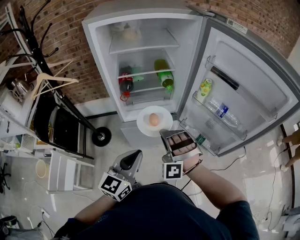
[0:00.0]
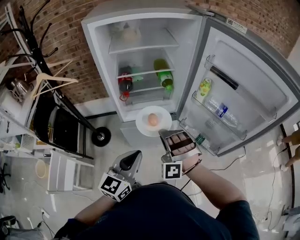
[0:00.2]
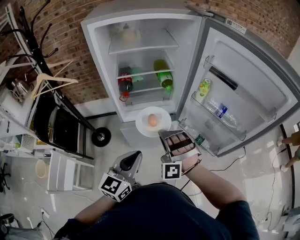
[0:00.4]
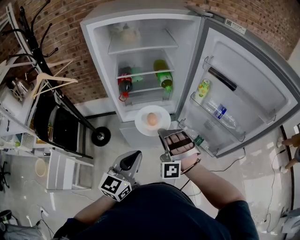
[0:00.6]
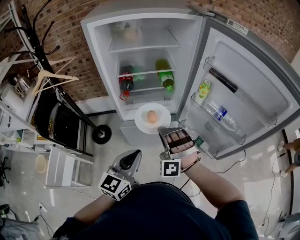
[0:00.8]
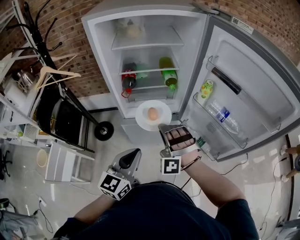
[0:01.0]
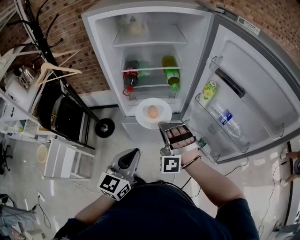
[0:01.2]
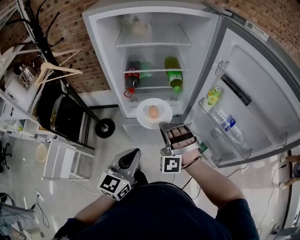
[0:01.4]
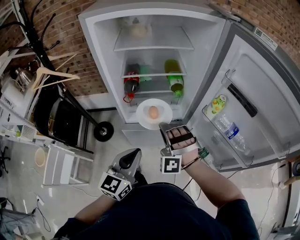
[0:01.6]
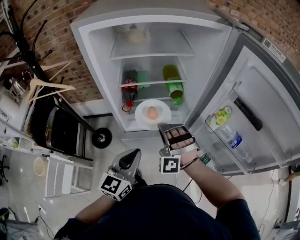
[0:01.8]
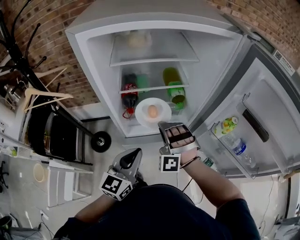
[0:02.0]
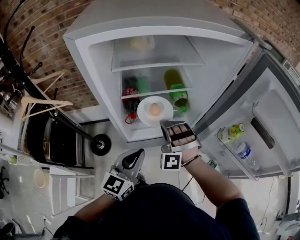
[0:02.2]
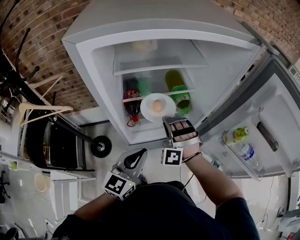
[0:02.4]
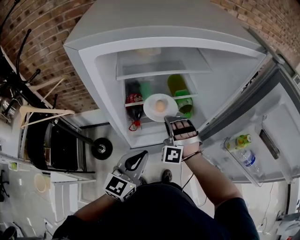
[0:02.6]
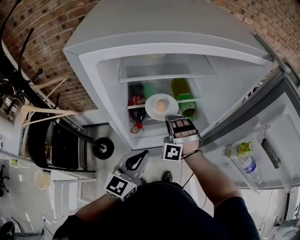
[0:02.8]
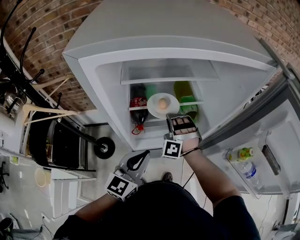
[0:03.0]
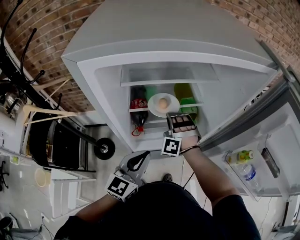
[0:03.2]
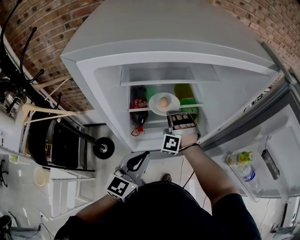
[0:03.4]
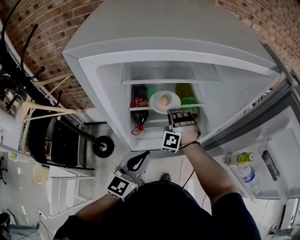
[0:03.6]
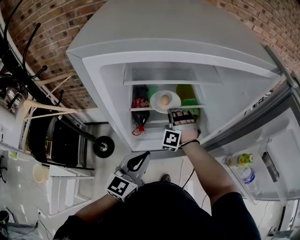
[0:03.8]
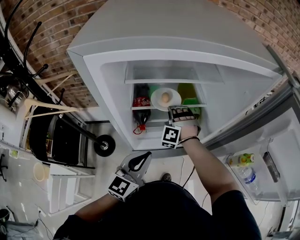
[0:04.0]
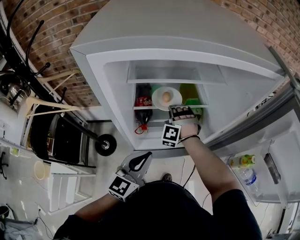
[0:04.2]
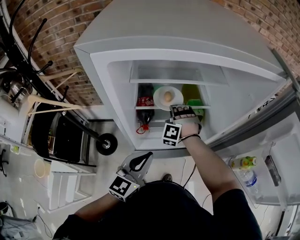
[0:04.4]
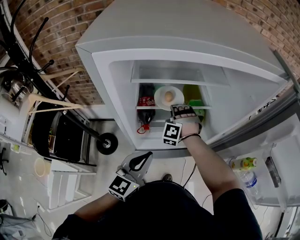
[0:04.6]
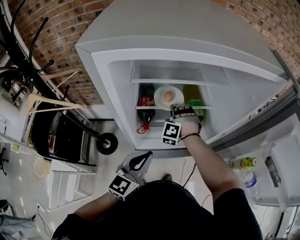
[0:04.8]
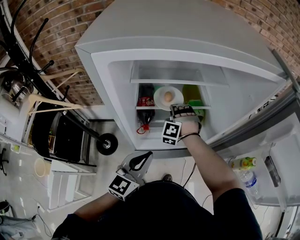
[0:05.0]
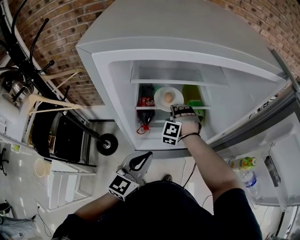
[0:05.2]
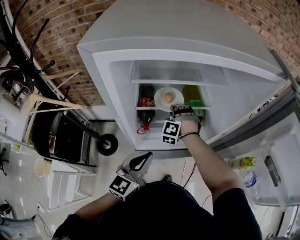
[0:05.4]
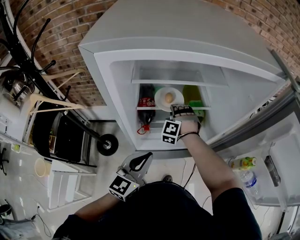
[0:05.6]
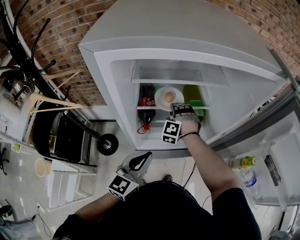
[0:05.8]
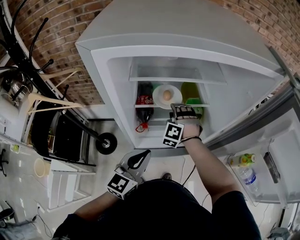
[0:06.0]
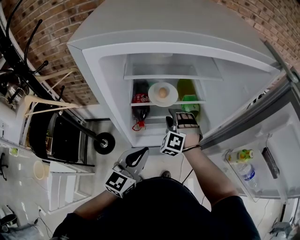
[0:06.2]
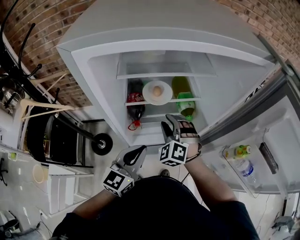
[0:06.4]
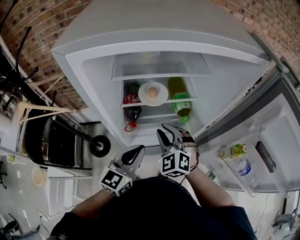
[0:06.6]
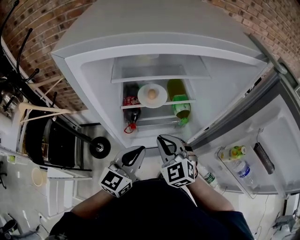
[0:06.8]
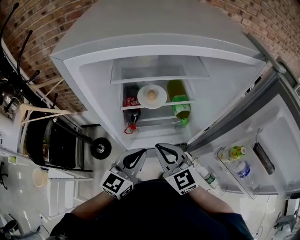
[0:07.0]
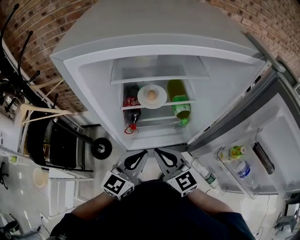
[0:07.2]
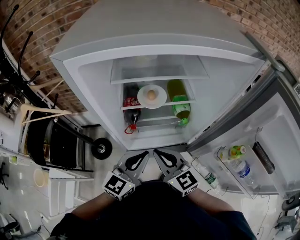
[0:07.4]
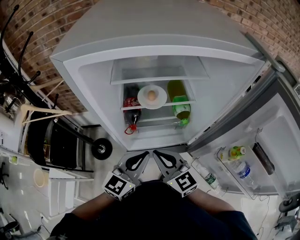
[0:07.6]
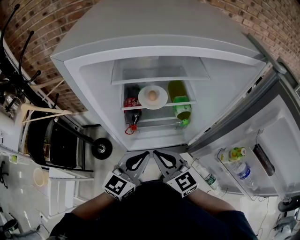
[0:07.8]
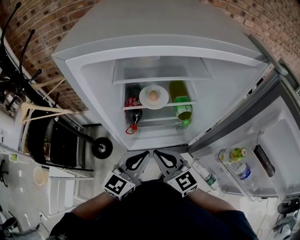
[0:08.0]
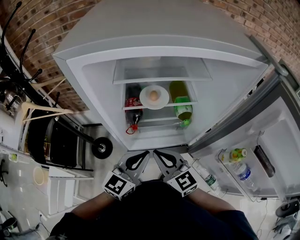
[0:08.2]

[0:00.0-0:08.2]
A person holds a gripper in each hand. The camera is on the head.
0.0 to 1.6 s: The left gripper ends up some 10 cm from where it was.
1.6 to 3.2 s: The left gripper changes place by about 20 cm.

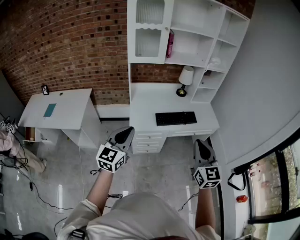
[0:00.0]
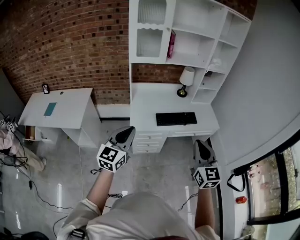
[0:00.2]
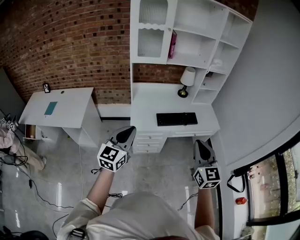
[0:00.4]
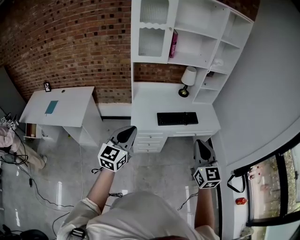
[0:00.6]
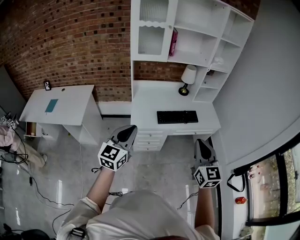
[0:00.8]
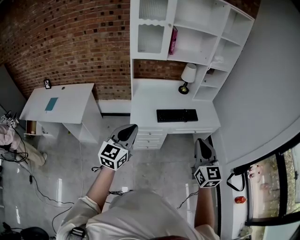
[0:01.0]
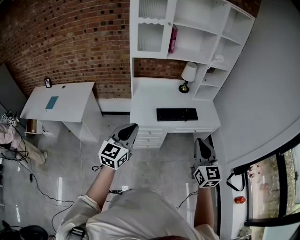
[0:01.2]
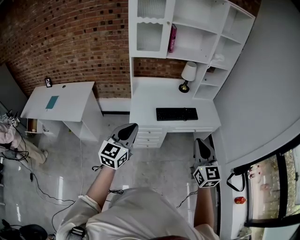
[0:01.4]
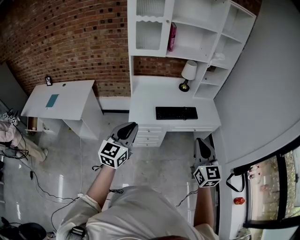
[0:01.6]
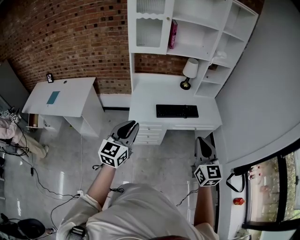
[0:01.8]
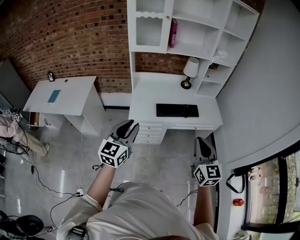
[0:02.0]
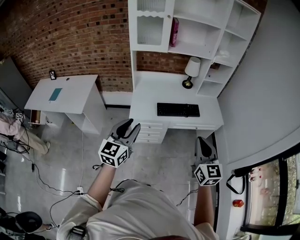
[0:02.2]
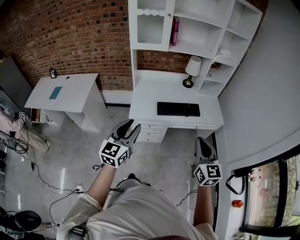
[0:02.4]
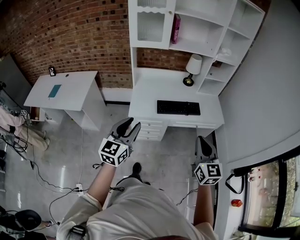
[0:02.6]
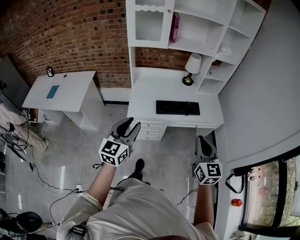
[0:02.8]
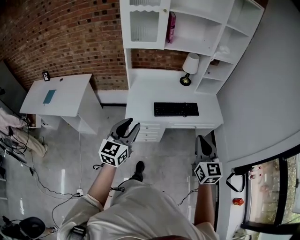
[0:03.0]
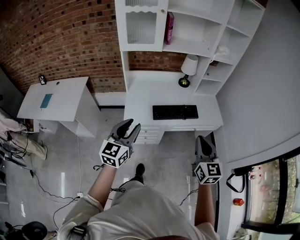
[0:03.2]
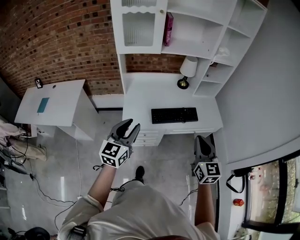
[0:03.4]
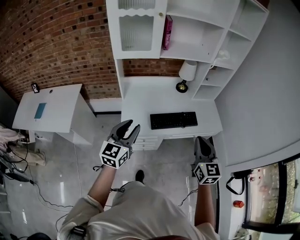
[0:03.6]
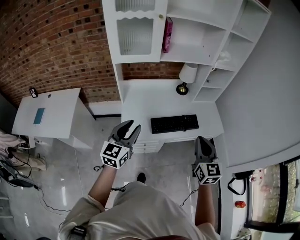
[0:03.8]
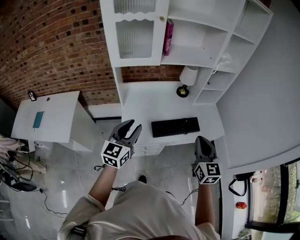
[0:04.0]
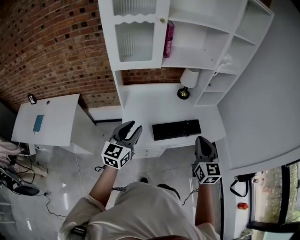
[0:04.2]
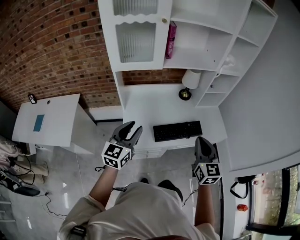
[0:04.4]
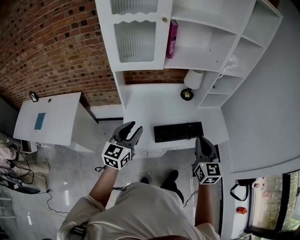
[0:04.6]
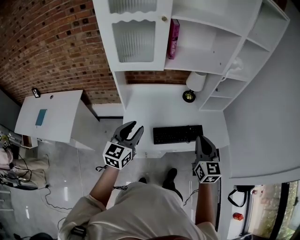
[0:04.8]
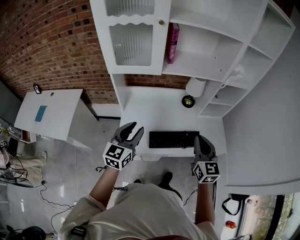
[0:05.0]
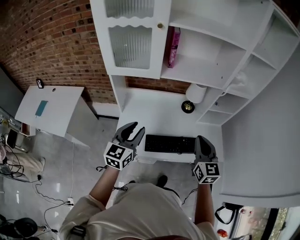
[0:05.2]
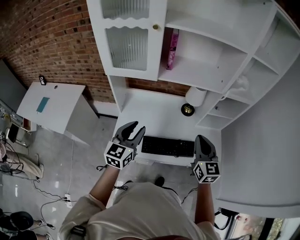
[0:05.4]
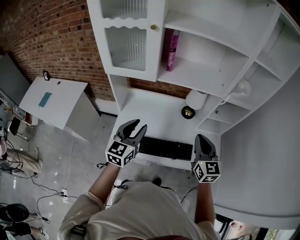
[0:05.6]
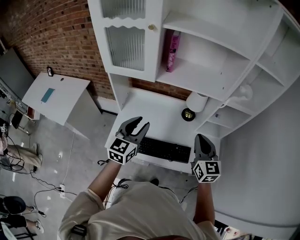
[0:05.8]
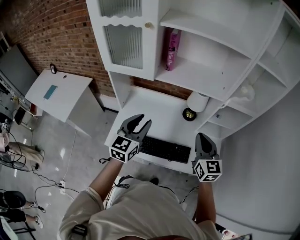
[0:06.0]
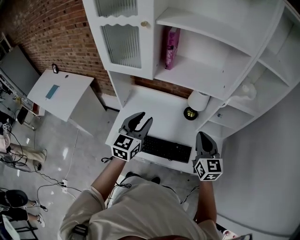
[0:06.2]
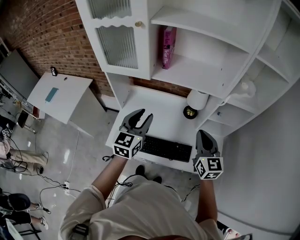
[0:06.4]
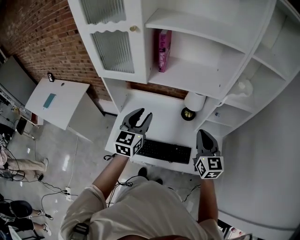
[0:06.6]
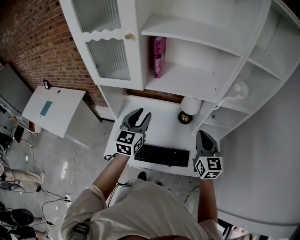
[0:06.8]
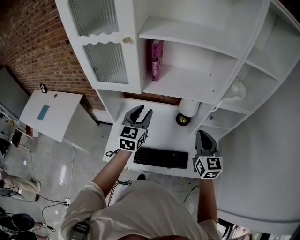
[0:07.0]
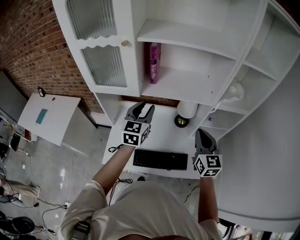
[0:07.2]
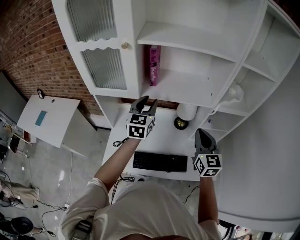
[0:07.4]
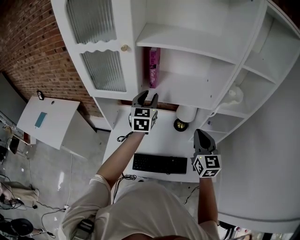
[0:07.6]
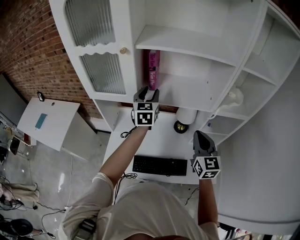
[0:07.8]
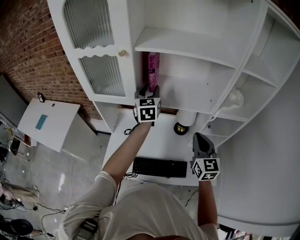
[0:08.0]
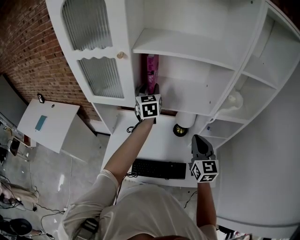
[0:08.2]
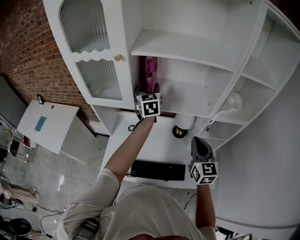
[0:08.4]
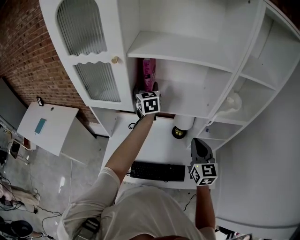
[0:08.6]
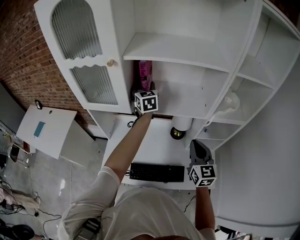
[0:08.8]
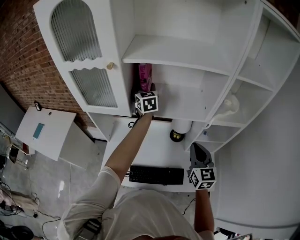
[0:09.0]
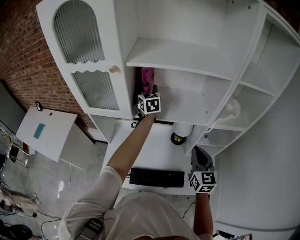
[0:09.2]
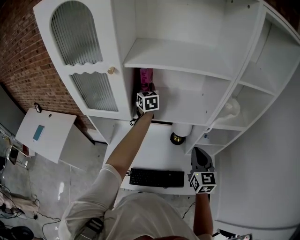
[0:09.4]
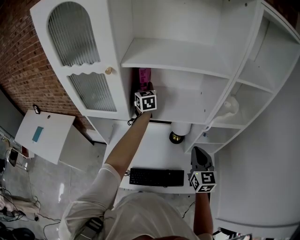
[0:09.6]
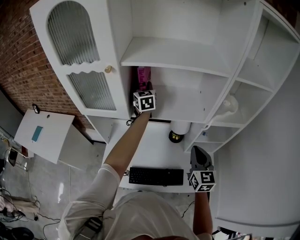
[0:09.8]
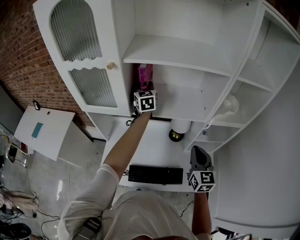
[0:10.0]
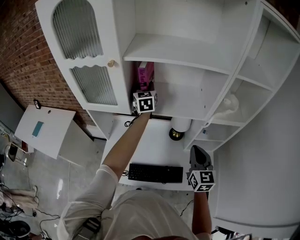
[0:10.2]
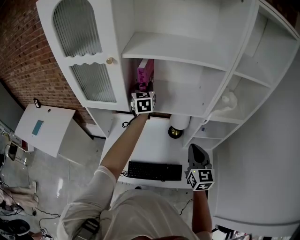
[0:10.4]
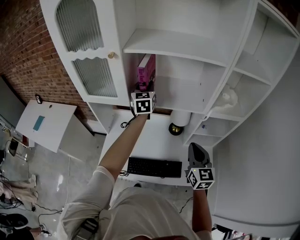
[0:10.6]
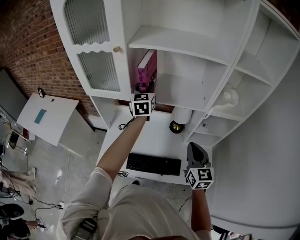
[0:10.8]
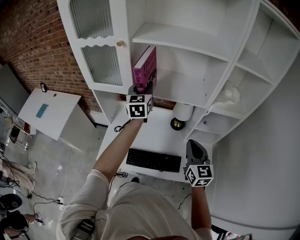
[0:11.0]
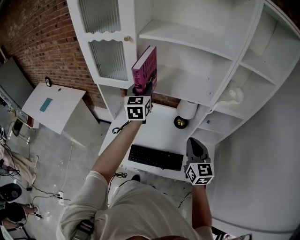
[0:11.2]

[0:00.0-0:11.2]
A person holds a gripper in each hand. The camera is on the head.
0.0 to 1.6 s: There are only small adjustments of the grippers.
1.6 to 3.2 s: The grippers both shift forward by approximately 10 cm. The left gripper opens.
3.2 to 4.8 s: The two grippers go some 25 cm forward.
4.8 to 6.4 s: The right gripper shifts some 25 cm forward and to the right. Meanwhile the left gripper goes about 20 cm to the right and forward.
6.4 to 8.0 s: The left gripper is displaced forward by some 25 cm. The right gripper moves forward, roughly 5 cm.
8.0 to 9.6 s: The left gripper heads forward, covering about 15 cm.
9.6 to 11.2 s: The left gripper travels backward by some 20 cm; the right gripper shifts approximately 10 cm backward.

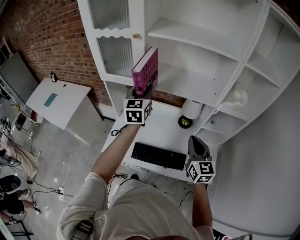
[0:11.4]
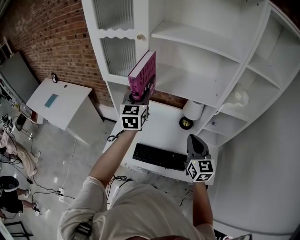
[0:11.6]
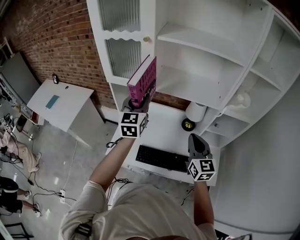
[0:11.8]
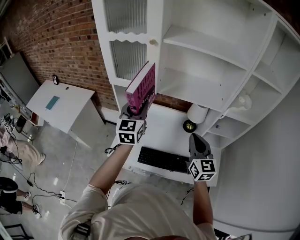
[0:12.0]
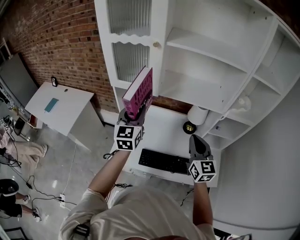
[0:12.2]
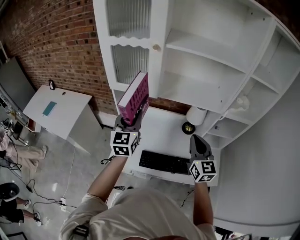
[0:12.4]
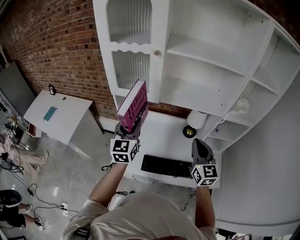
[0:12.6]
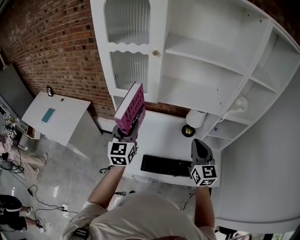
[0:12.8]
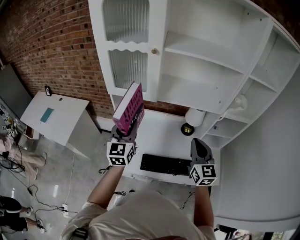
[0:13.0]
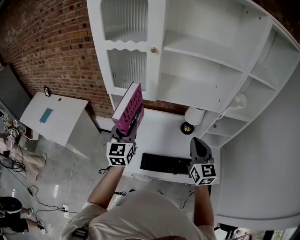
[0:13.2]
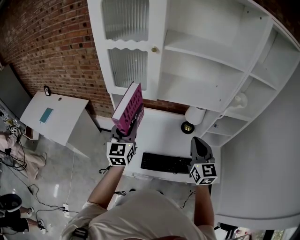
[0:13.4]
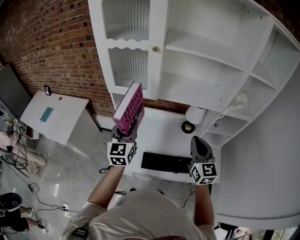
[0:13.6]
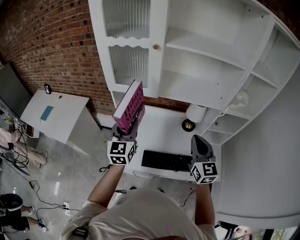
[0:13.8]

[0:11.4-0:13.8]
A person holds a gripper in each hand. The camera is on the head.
11.4 to 12.6 s: The left gripper shifts roughly 15 cm to the left and backward. Meanwhile the right gripper is displaced to the left by some 10 cm.
12.6 to 13.8 s: The grippers stay close to where they were, moving slightly.

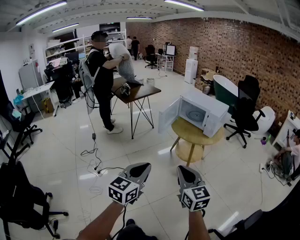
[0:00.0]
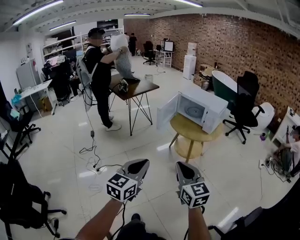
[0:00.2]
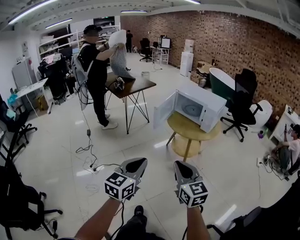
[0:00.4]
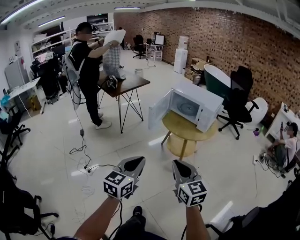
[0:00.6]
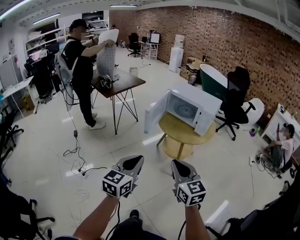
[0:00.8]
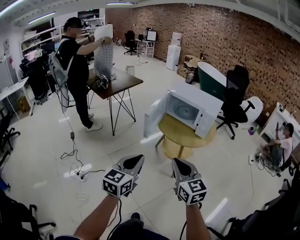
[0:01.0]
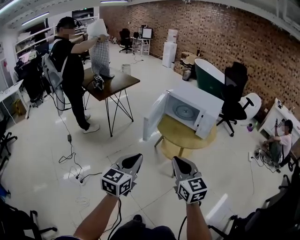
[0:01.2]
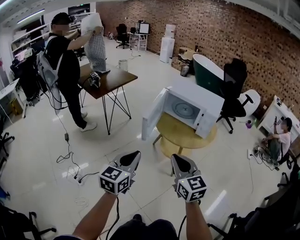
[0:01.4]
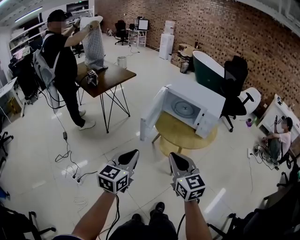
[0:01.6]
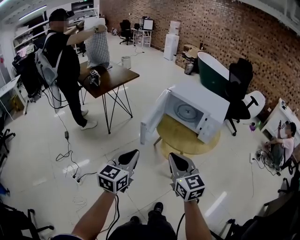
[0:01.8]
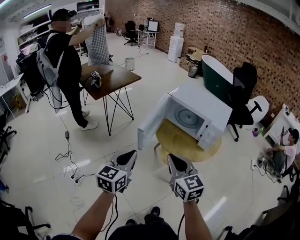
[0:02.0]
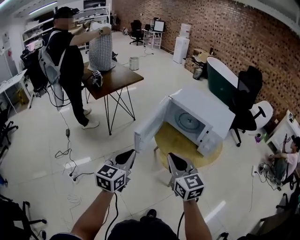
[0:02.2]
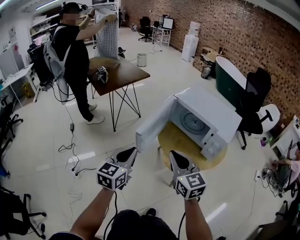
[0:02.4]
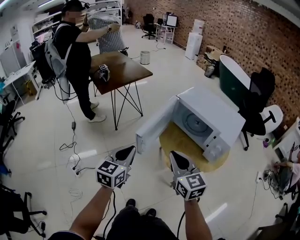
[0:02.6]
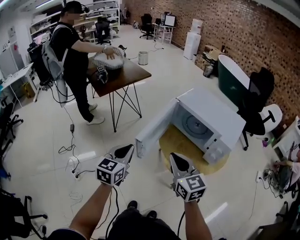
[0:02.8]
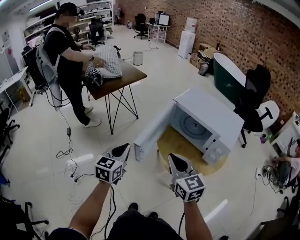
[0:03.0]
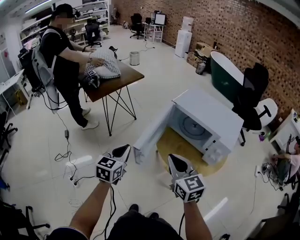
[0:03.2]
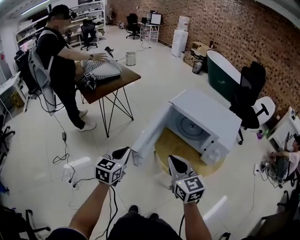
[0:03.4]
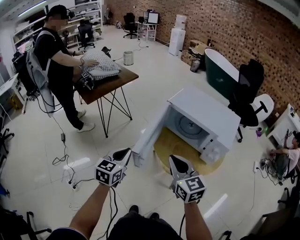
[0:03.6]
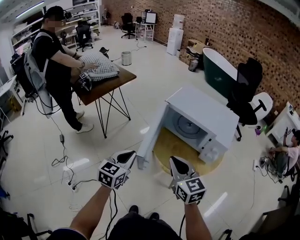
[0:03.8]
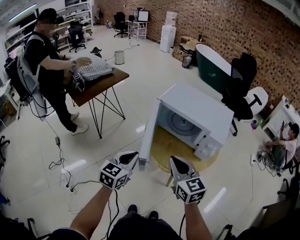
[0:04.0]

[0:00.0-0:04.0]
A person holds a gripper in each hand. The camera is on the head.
0.0 to 1.4 s: Both grippers move forward, some 25 cm.
1.4 to 2.6 s: Both grippers travel together forward, some 15 cm.
2.6 to 4.0 s: The left gripper is displaced forward and to the right by some 10 cm, and swivels approximately 20 degrees. Meanwhile the right gripper shifts by roughly 5 cm.
